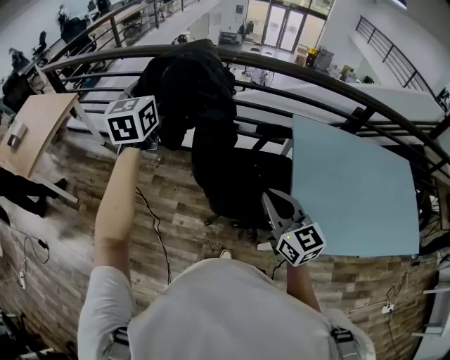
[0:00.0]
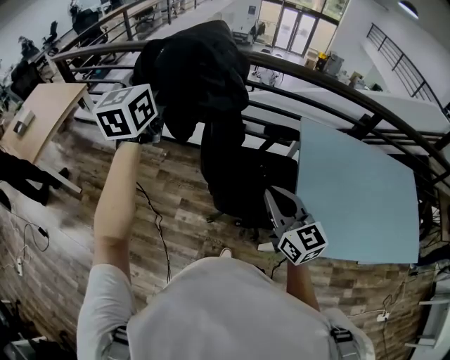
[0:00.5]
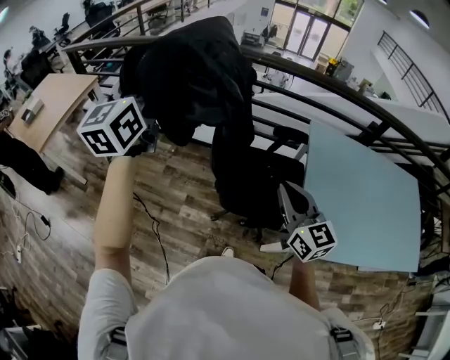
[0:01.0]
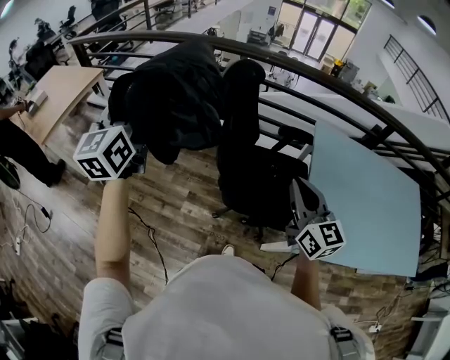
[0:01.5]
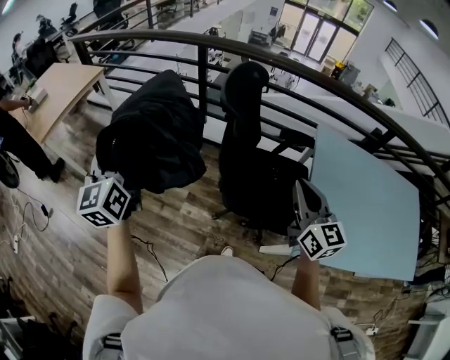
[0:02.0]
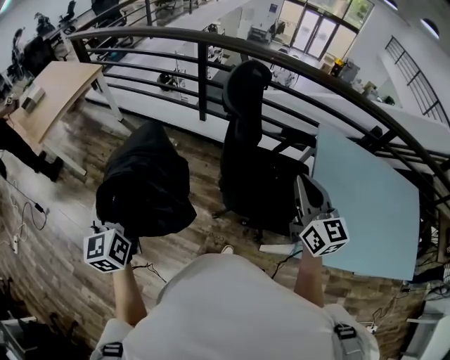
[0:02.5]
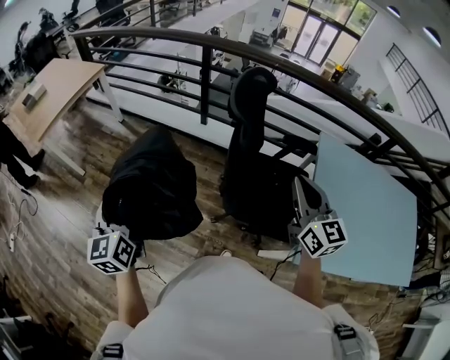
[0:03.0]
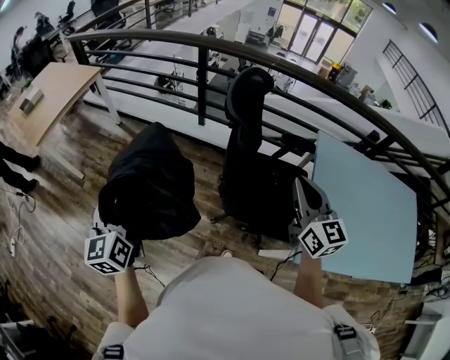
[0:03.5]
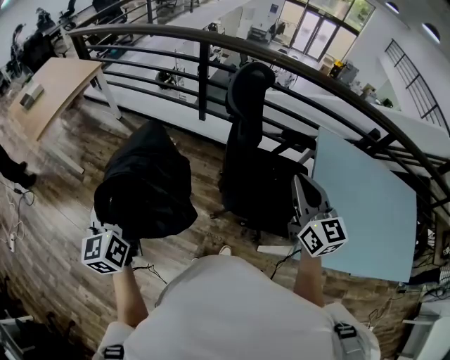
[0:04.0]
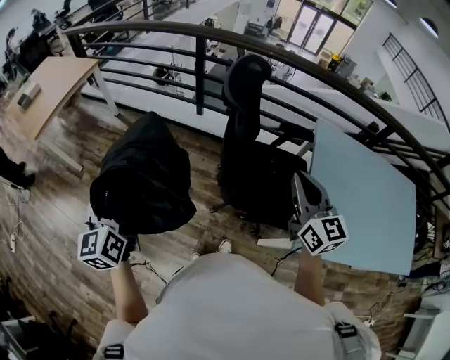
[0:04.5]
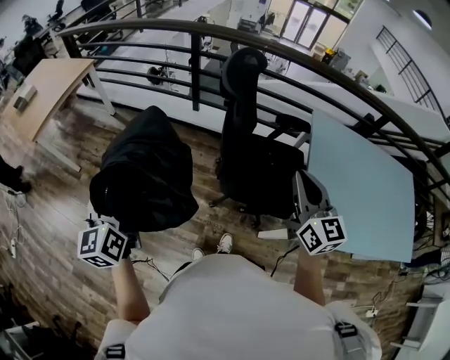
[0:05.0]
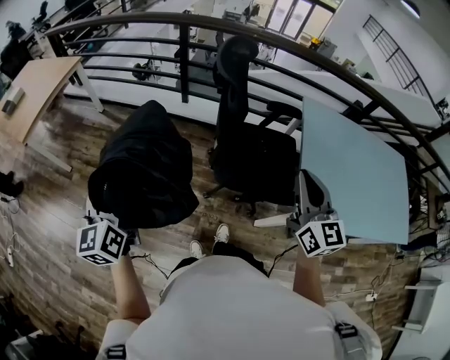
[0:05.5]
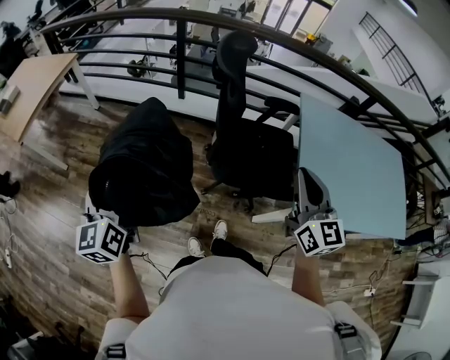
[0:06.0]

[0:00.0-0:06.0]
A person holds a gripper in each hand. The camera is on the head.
0:00.0 to 0:02.0: The left gripper moves to the left and backward, about 25 cm, and turns by some 20 degrees.
0:02.0 to 0:04.0: The left gripper goes approximately 10 cm downward, backward and to the left.
0:04.0 to 0:06.0: The right gripper goes roughly 10 cm backward.

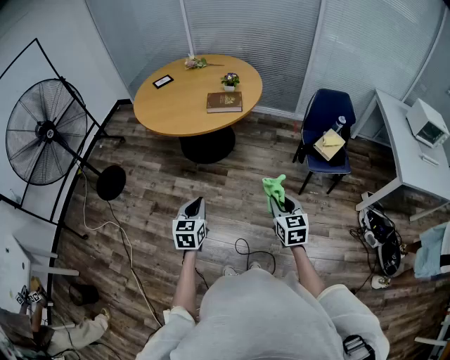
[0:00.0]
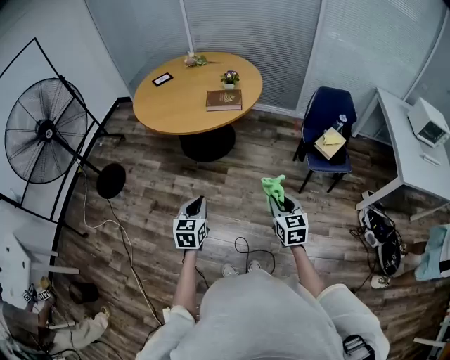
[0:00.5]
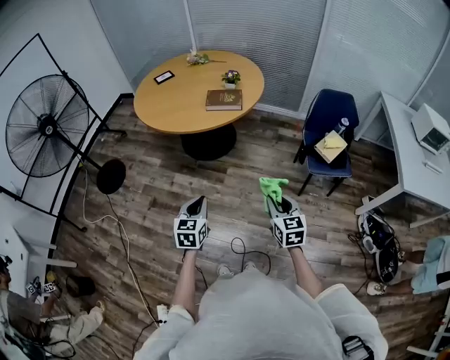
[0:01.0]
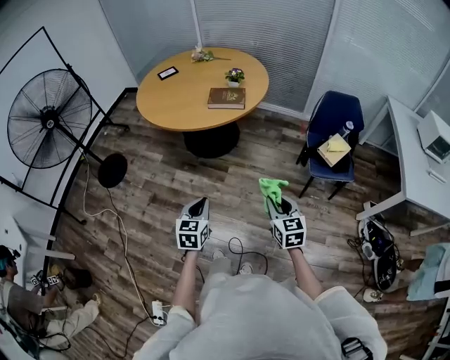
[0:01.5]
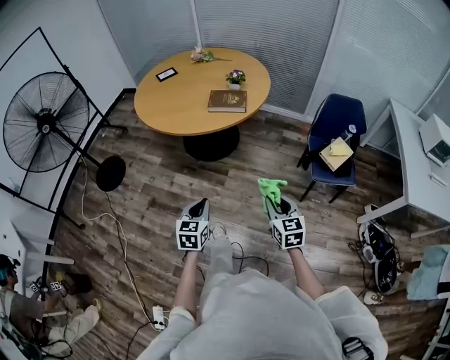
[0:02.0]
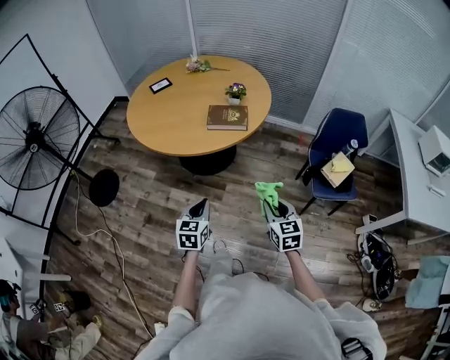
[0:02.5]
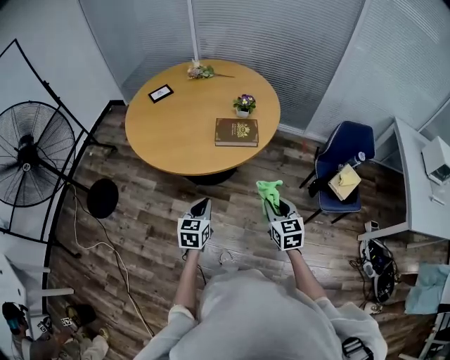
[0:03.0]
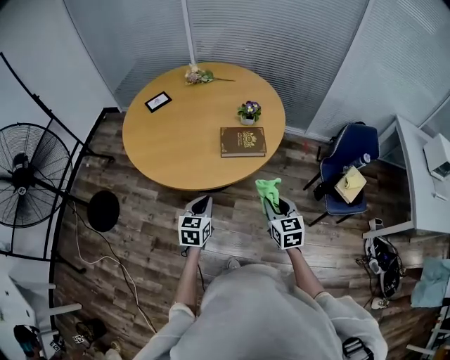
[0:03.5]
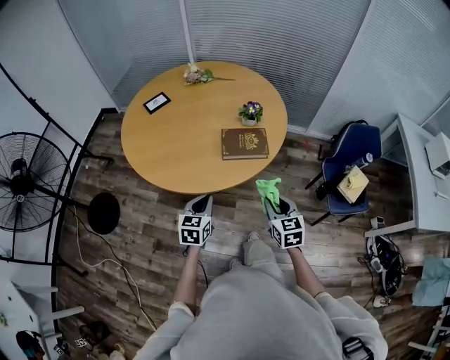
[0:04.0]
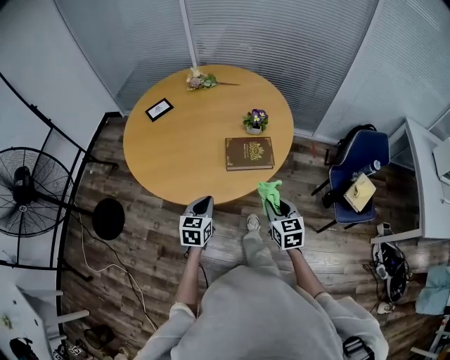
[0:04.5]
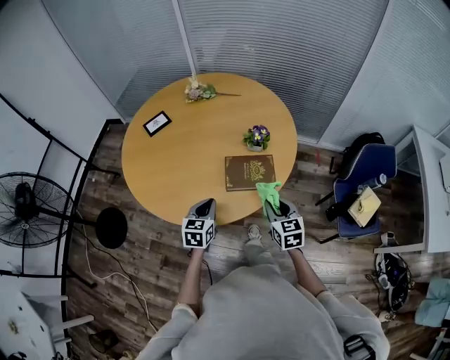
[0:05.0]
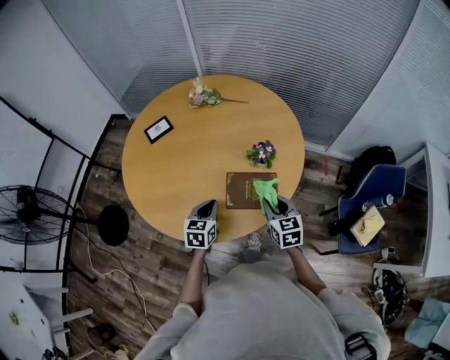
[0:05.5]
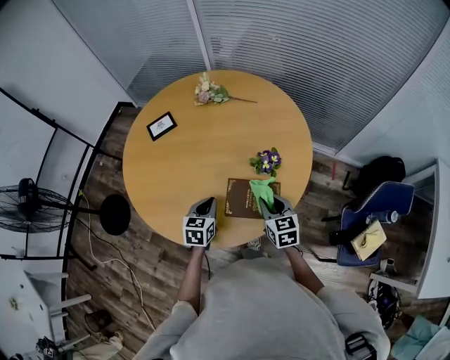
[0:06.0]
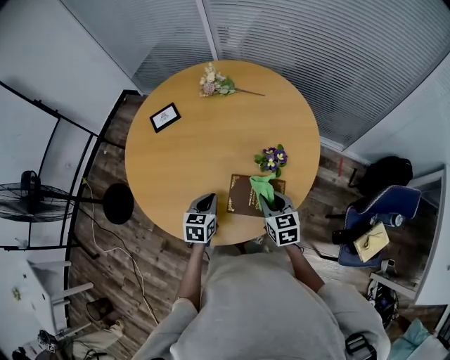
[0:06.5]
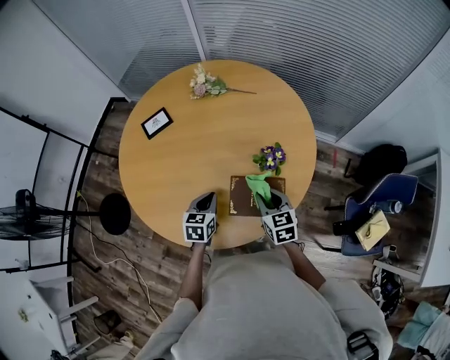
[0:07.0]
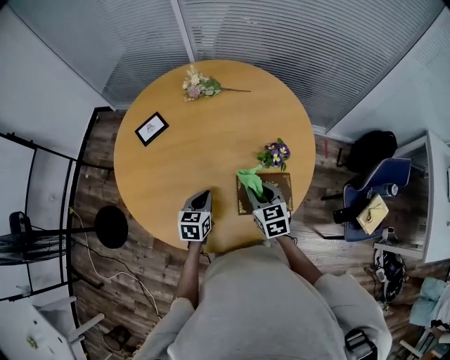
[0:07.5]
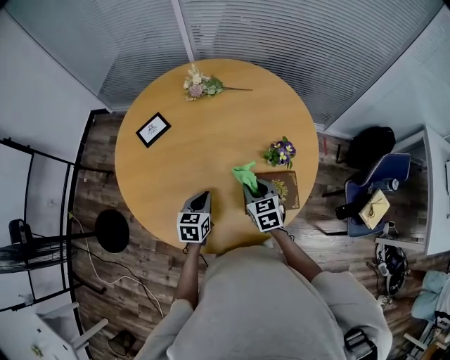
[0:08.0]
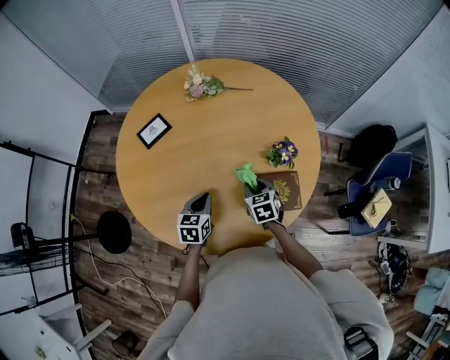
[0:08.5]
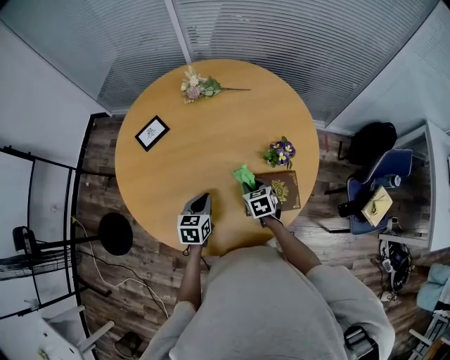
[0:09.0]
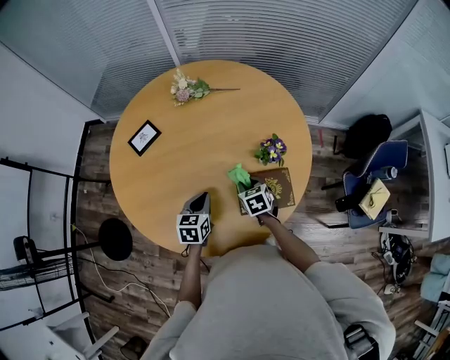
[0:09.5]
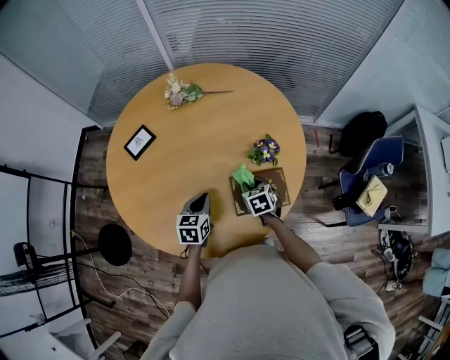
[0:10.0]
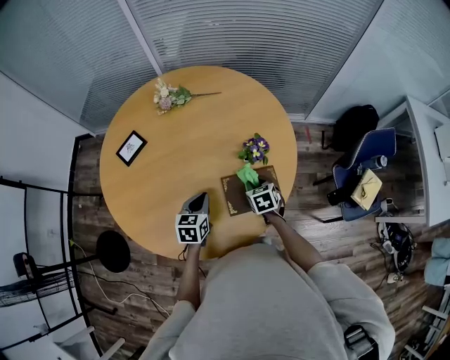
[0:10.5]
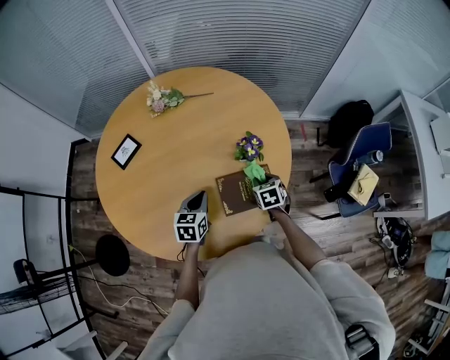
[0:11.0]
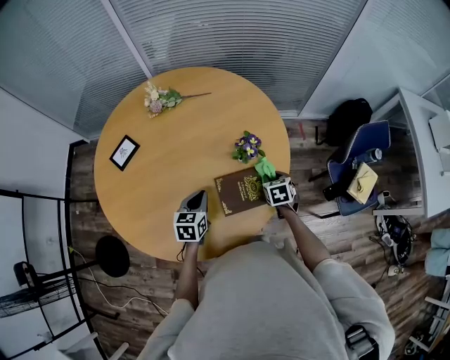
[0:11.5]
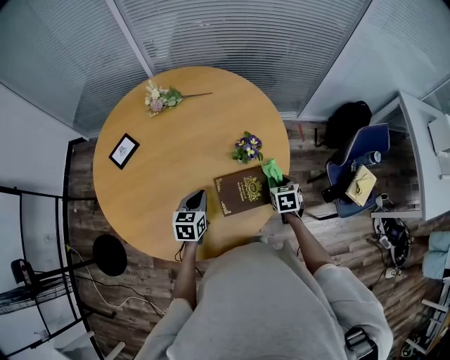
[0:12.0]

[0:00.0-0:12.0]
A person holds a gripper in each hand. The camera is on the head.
0:00.0 to 0:02.0: Both grippers travel together forward, roughly 5 cm.
0:02.0 to 0:04.0: The left gripper heads forward, covering some 35 cm; the right gripper goes some 35 cm forward and to the left.
0:04.0 to 0:06.0: The two grippers go approximately 30 cm forward.
0:06.0 to 0:08.0: The right gripper travels to the left and forward by about 15 cm, while the left gripper heads to the left, covering approximately 10 cm.
0:08.0 to 0:10.0: The right gripper shifts some 10 cm downward and to the right.
0:10.0 to 0:12.0: The right gripper moves to the right, roughly 15 cm.

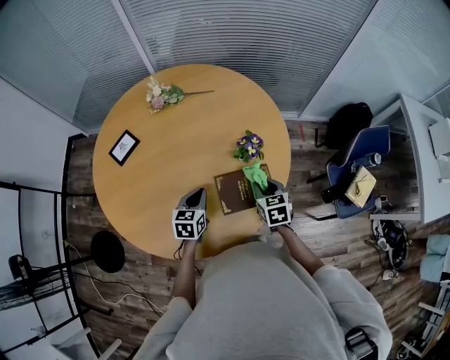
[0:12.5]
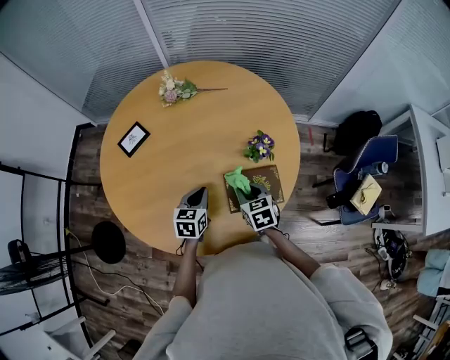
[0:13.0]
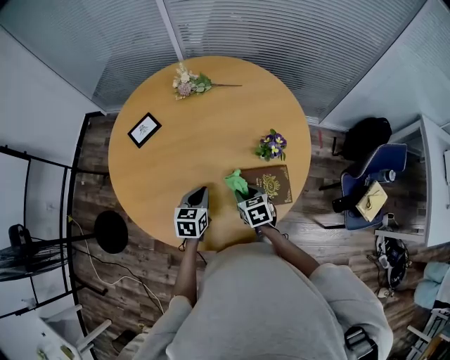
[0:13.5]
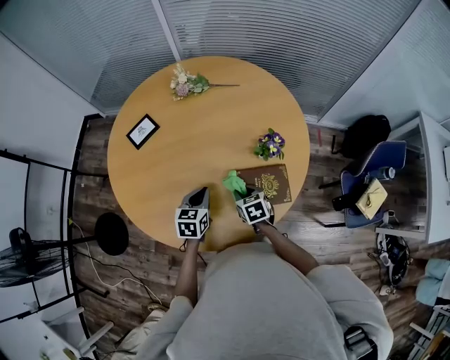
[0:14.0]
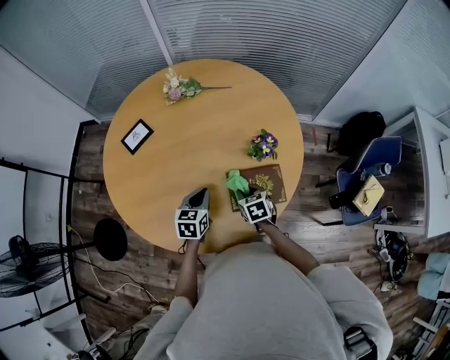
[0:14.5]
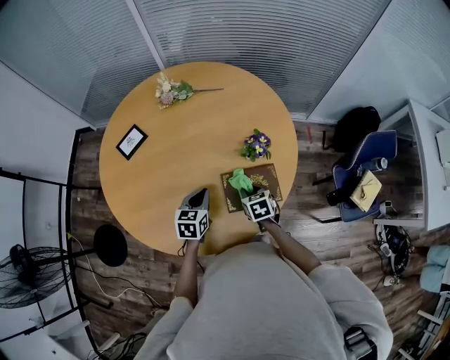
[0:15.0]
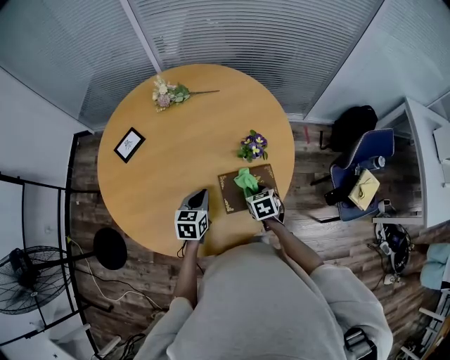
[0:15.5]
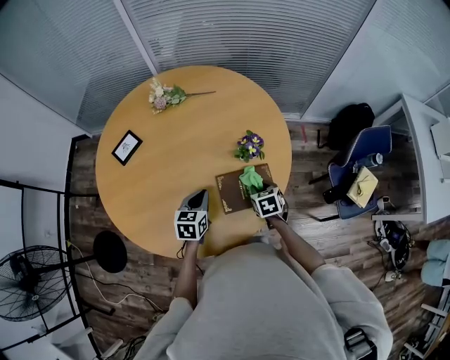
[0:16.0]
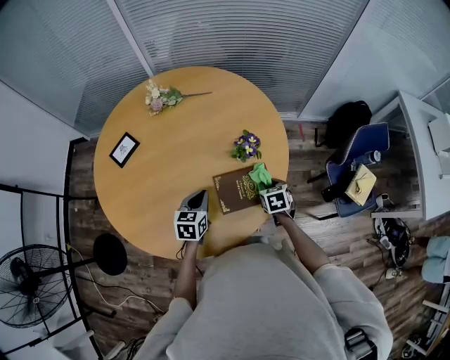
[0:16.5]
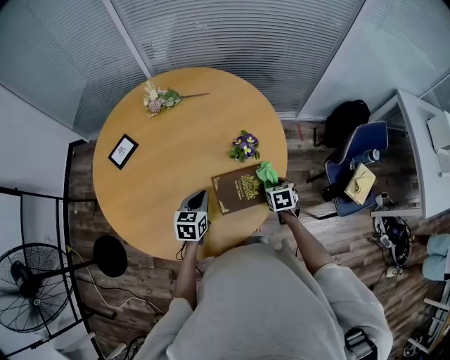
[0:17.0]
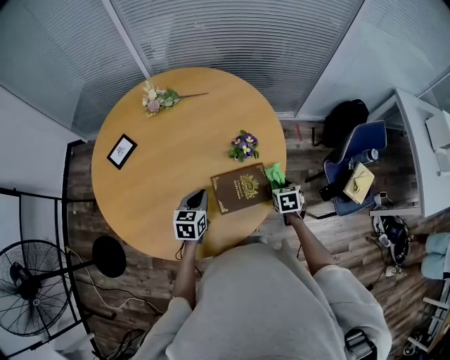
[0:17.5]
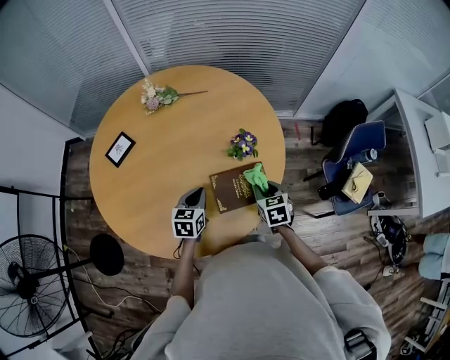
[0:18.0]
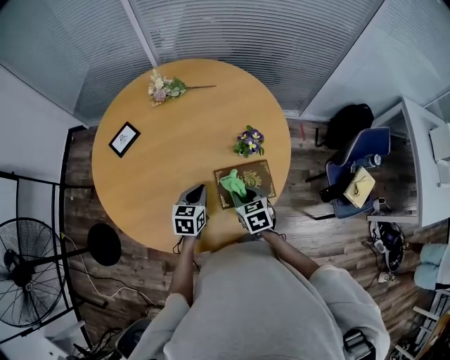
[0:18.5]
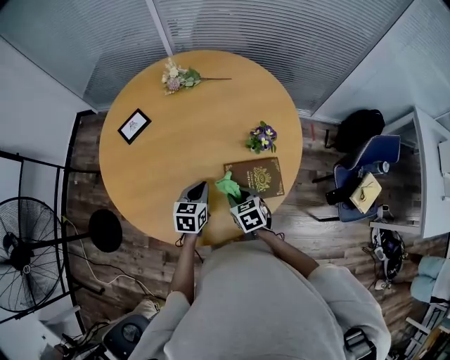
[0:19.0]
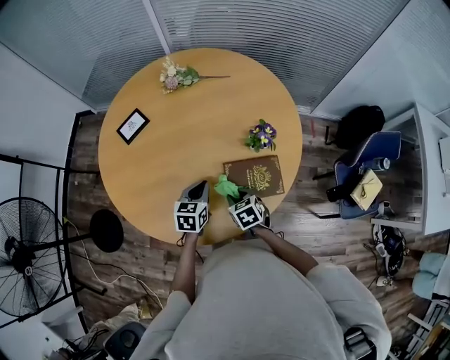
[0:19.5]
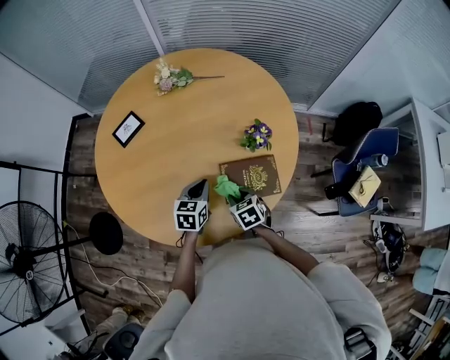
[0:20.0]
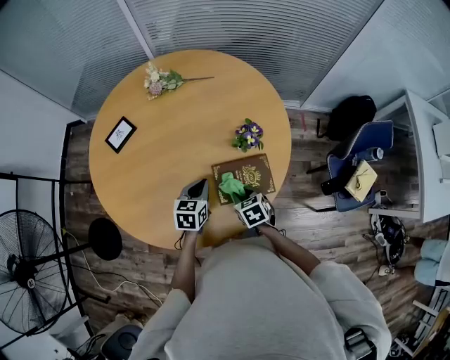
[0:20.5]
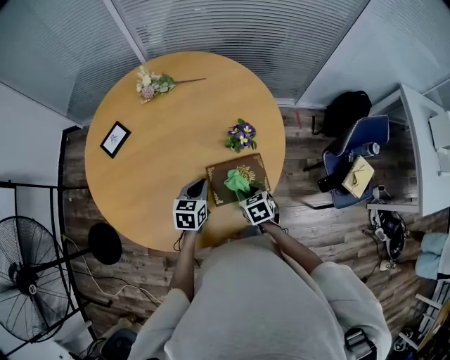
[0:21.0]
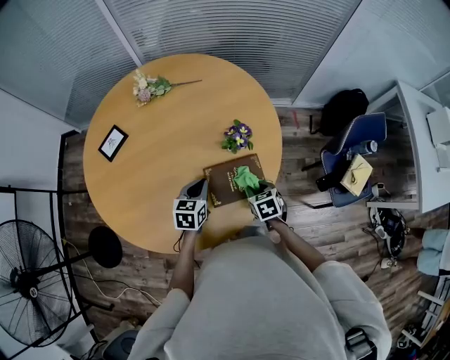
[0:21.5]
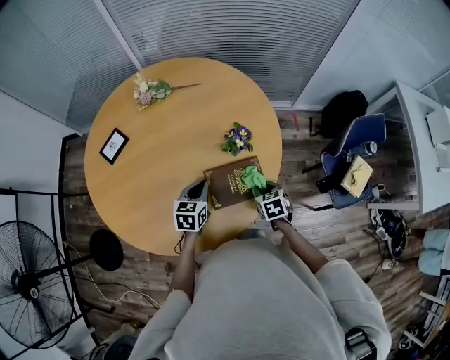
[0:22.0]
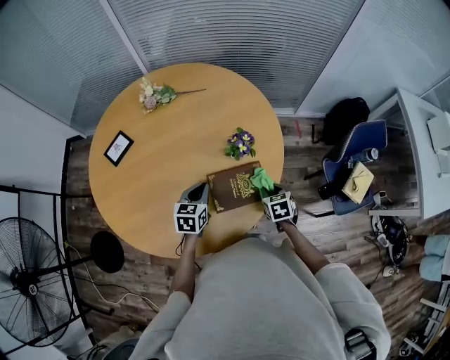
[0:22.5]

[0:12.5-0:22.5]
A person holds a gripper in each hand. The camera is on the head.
0:12.5 to 0:14.5: The right gripper heads to the left and downward, covering about 10 cm.
0:14.5 to 0:16.5: The right gripper moves to the right, some 15 cm.
0:16.5 to 0:18.5: The right gripper shifts approximately 15 cm to the left, upward and backward.
0:18.5 to 0:20.5: The right gripper heads downward, covering about 5 cm.
0:20.5 to 0:22.5: The right gripper is displaced to the right by about 15 cm.
